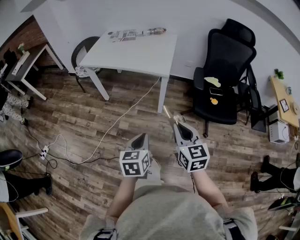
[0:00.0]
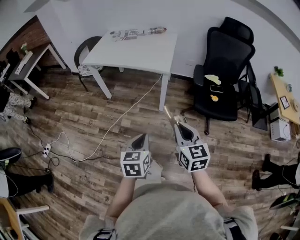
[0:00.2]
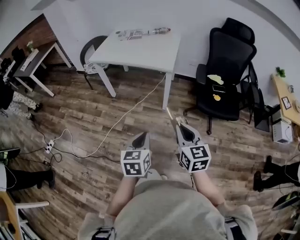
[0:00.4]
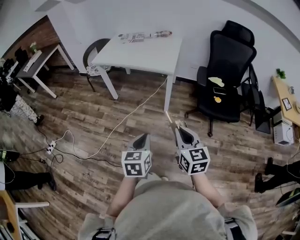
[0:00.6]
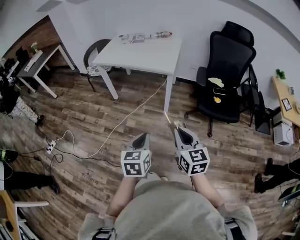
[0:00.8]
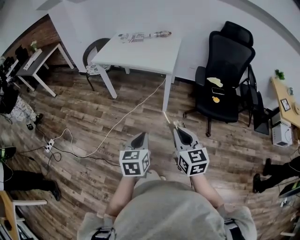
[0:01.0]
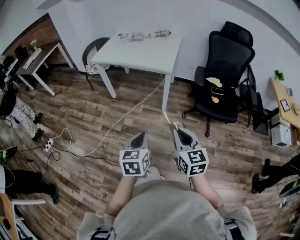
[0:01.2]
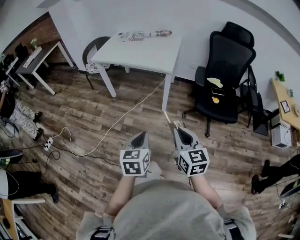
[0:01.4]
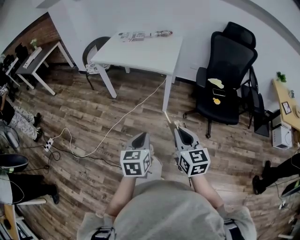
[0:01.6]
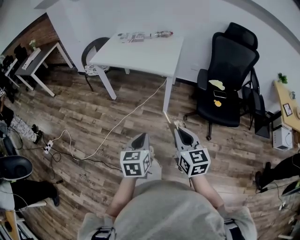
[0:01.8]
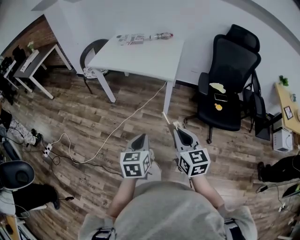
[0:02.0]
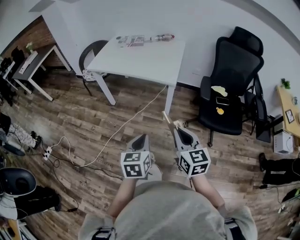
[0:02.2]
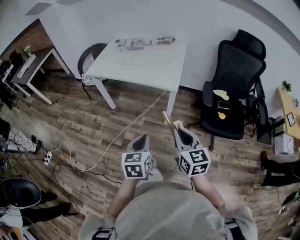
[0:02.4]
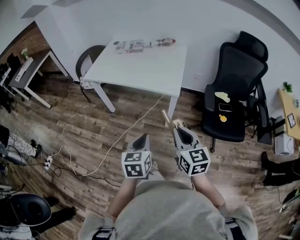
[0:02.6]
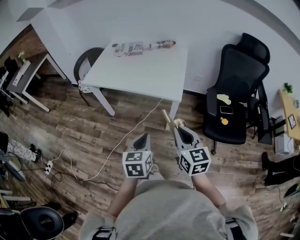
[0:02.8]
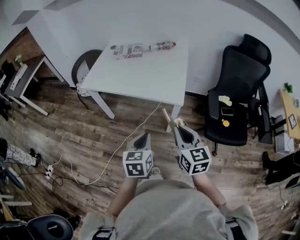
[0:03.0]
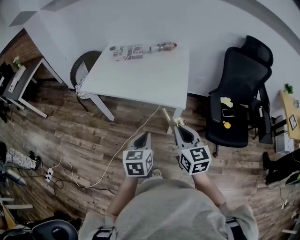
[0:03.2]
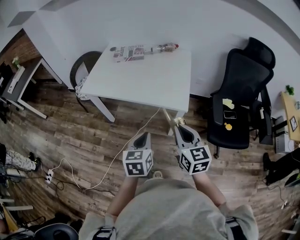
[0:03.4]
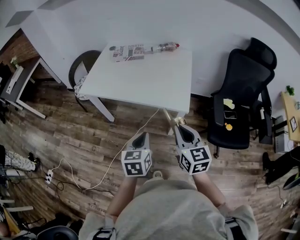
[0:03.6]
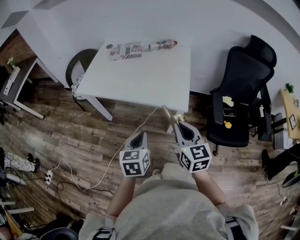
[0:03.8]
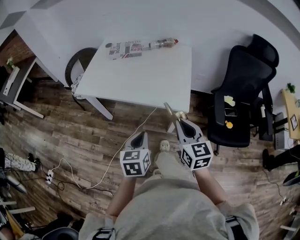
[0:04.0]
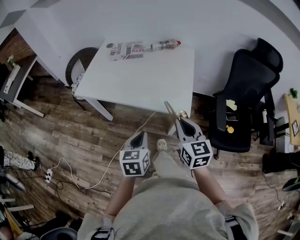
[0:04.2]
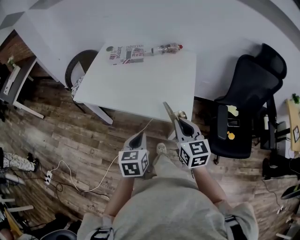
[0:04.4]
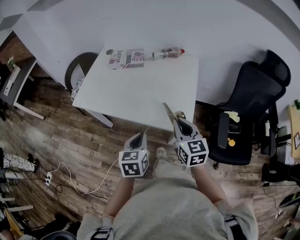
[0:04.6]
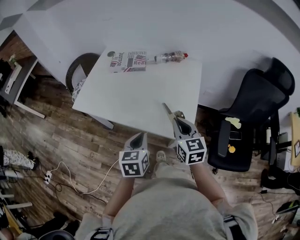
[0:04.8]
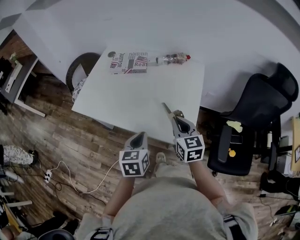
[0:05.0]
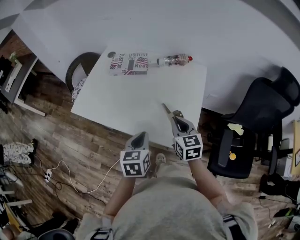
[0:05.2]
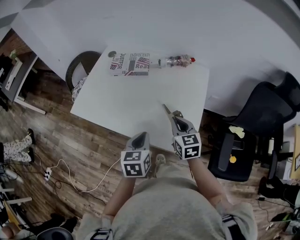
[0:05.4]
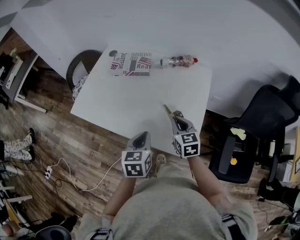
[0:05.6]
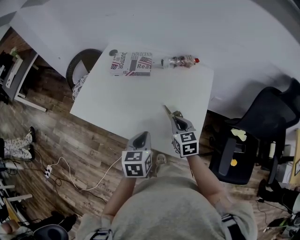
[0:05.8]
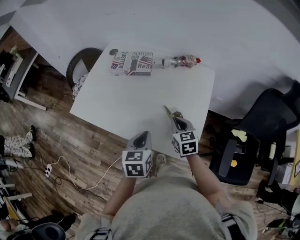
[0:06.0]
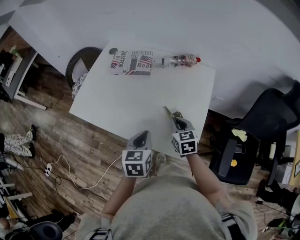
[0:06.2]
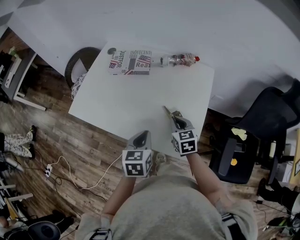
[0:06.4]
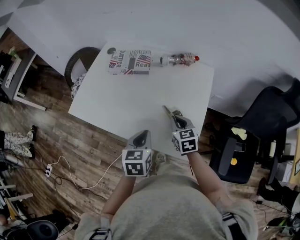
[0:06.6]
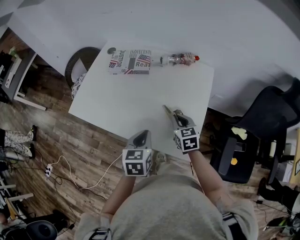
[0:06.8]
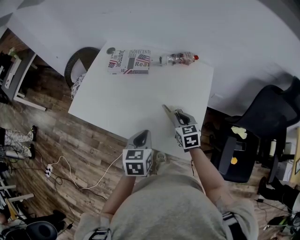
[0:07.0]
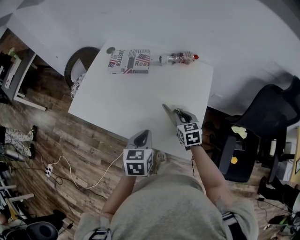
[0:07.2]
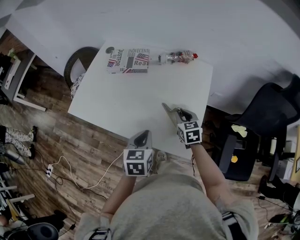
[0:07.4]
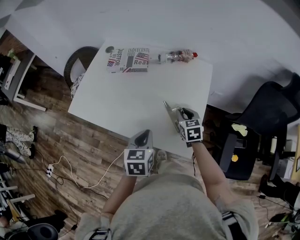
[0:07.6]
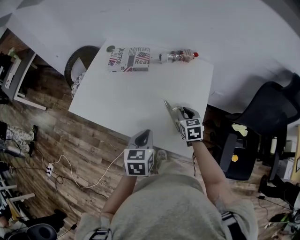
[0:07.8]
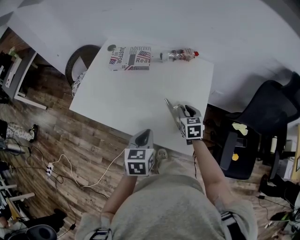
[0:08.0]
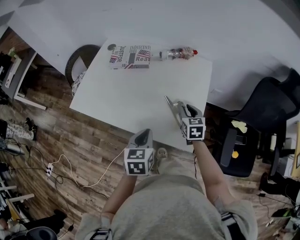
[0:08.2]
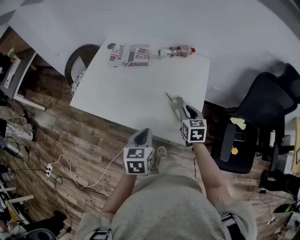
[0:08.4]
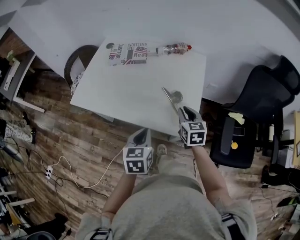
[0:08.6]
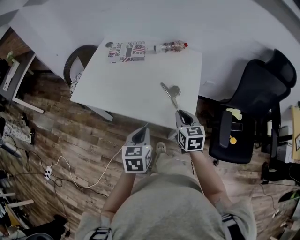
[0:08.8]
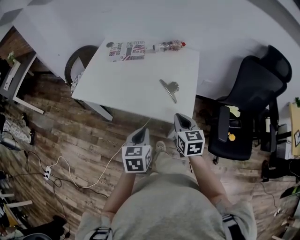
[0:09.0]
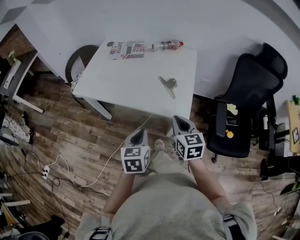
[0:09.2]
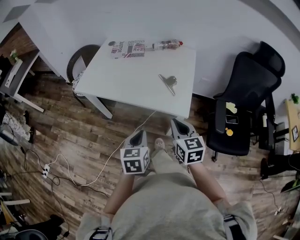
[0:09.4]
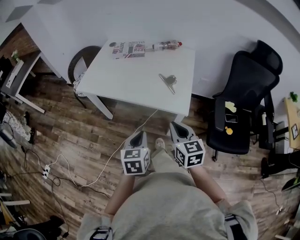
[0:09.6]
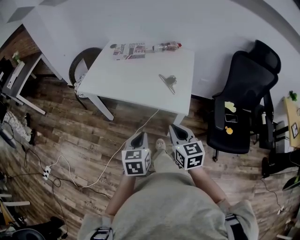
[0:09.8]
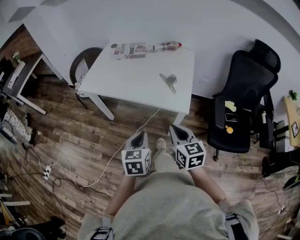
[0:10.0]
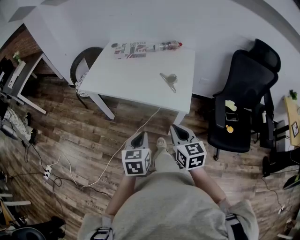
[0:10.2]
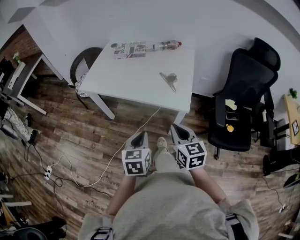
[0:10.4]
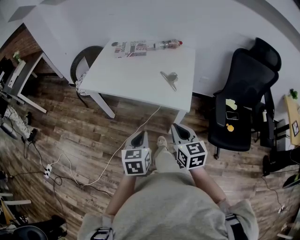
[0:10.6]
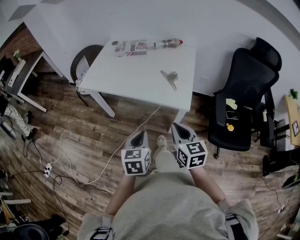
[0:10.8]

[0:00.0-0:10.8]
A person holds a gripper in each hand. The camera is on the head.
0:00.0 to 0:01.6: The grippers both shift backward by about 10 cm.
0:01.6 to 0:03.0: Both grippers travel together forward, about 30 cm.
0:03.0 to 0:04.6: Both grippers travel together forward, about 25 cm.
0:04.6 to 0:06.2: The right gripper is displaced forward and downward by about 25 cm. Meanwhile the left gripper shifts about 15 cm forward.
0:06.2 to 0:07.8: The right gripper shifts about 5 cm to the right.
0:07.8 to 0:09.2: The right gripper heads backward and upward, covering roughly 30 cm. The left gripper shifts about 20 cm backward.
0:09.2 to 0:10.8: Both grippers travel together backward, roughly 10 cm.

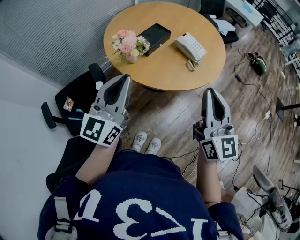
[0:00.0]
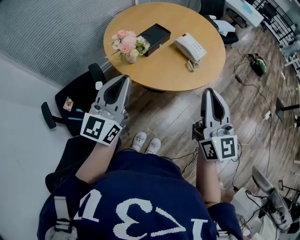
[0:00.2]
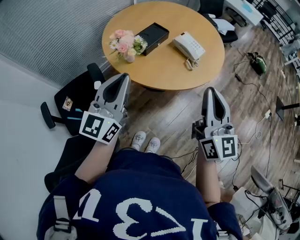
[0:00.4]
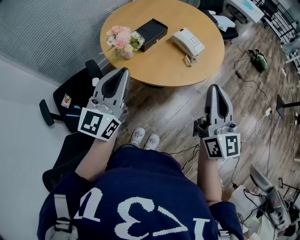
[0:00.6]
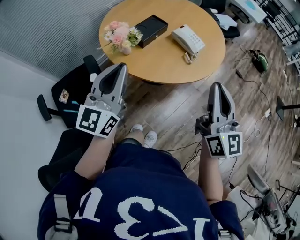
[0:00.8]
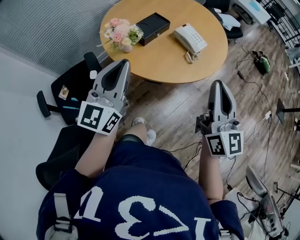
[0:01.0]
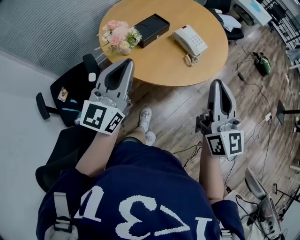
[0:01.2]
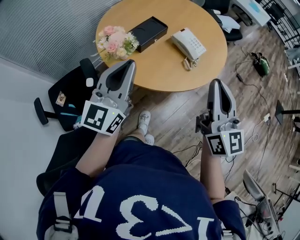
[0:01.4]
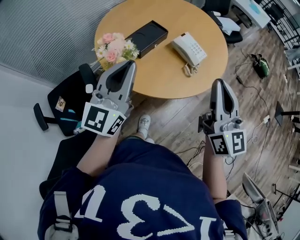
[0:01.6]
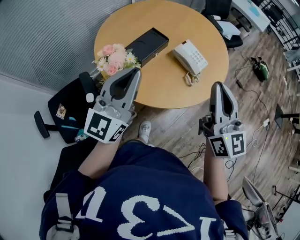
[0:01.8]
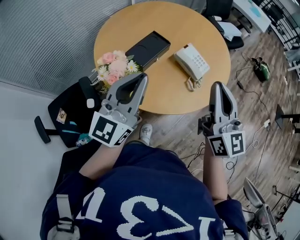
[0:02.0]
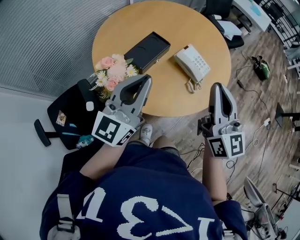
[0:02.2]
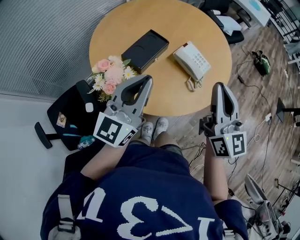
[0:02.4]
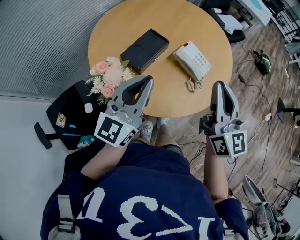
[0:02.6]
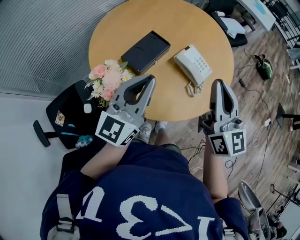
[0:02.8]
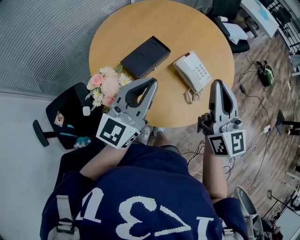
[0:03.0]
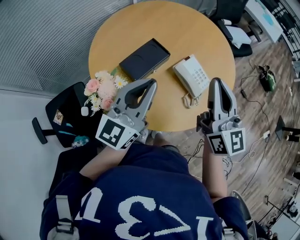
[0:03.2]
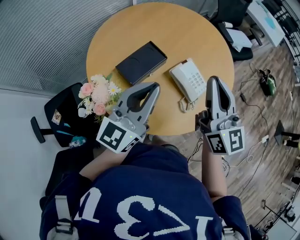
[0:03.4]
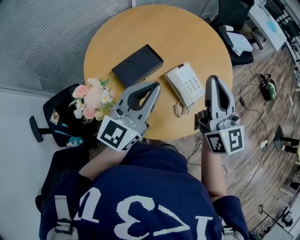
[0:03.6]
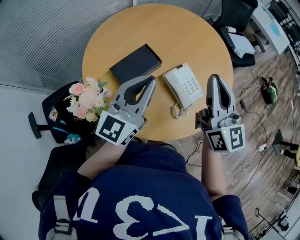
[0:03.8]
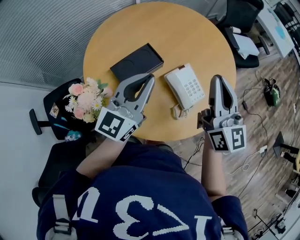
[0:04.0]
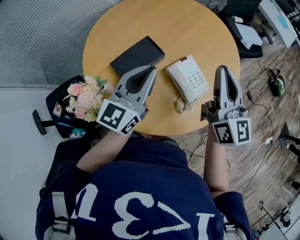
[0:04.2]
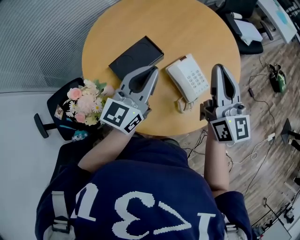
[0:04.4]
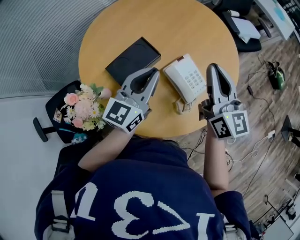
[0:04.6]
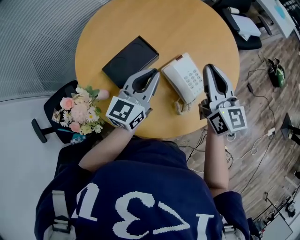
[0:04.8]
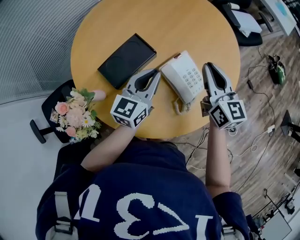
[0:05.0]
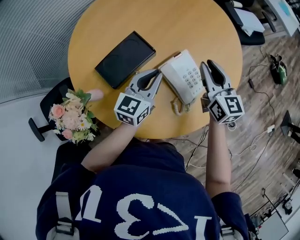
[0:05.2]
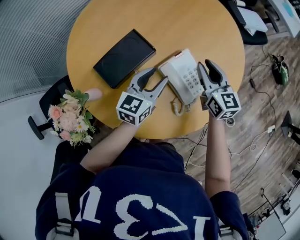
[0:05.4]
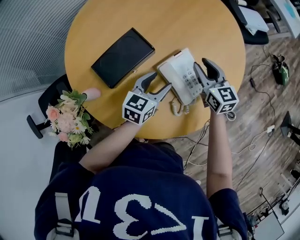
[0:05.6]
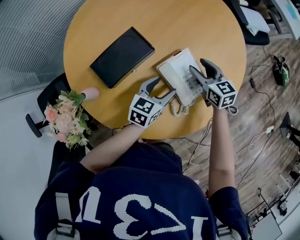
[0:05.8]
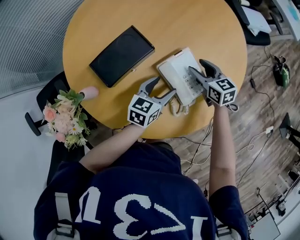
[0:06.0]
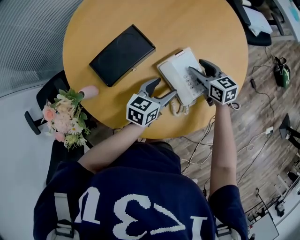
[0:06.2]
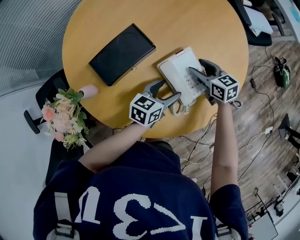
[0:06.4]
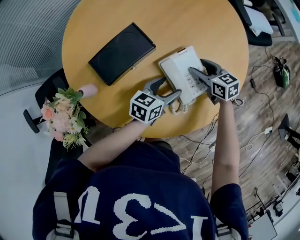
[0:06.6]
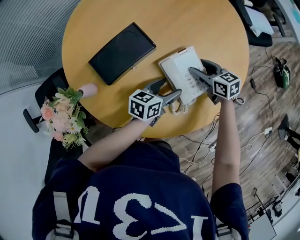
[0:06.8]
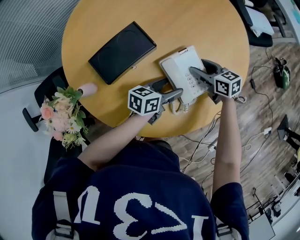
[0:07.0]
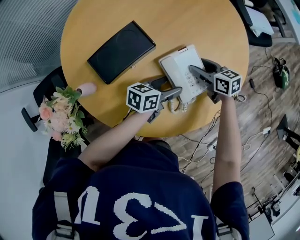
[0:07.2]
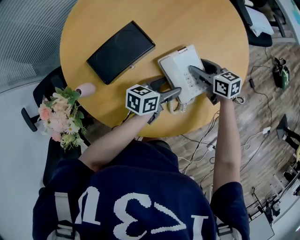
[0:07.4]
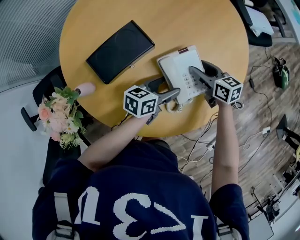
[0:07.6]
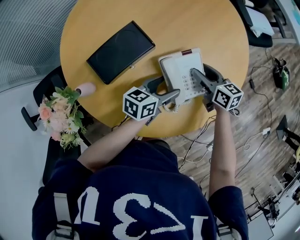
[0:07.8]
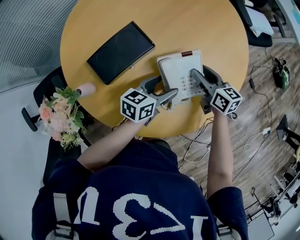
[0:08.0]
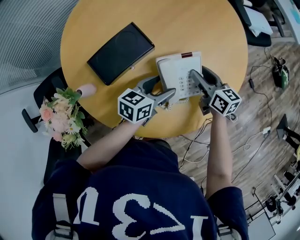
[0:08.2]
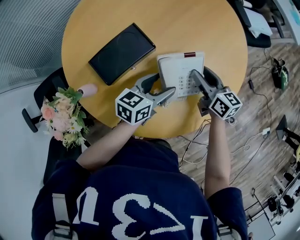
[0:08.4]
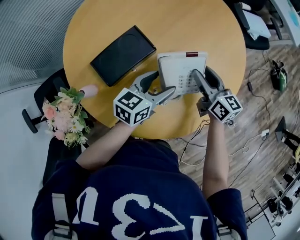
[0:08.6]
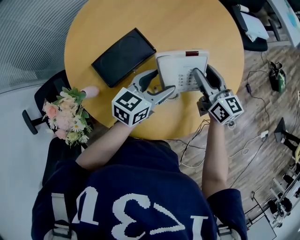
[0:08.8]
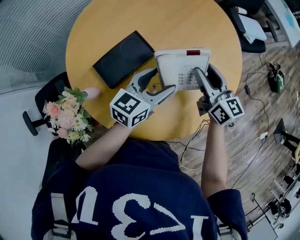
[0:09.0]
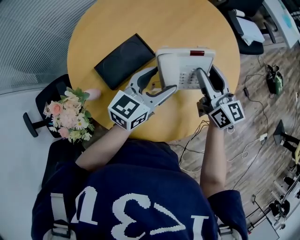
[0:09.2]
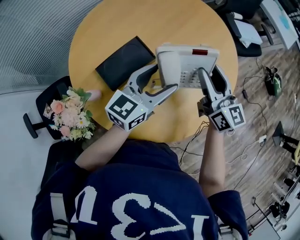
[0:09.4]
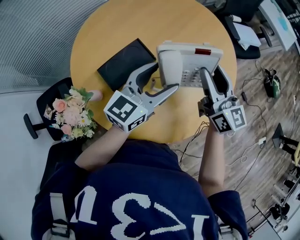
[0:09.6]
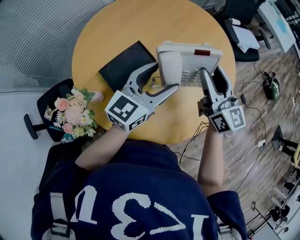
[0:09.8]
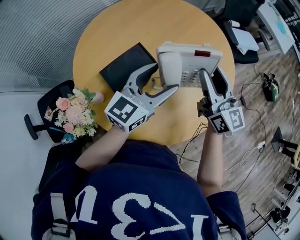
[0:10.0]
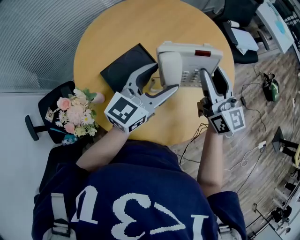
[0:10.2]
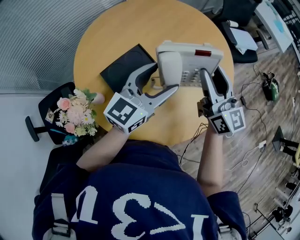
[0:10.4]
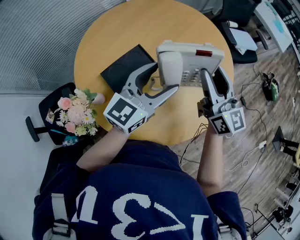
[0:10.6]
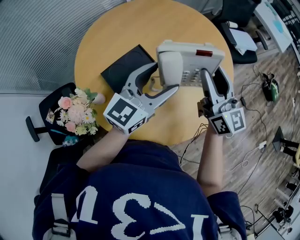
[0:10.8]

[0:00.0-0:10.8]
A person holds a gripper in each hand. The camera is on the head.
0:00.0 to 0:01.6: The right gripper shifts some 10 cm forward. The left gripper goes about 15 cm forward and to the right.
0:01.6 to 0:03.0: The two grippers go some 15 cm forward.
0:03.0 to 0:04.6: The right gripper travels forward and downward by roughly 15 cm. Meanwhile the left gripper travels forward, downward and to the right by approximately 20 cm.
0:04.6 to 0:06.2: Both grippers travel together downward, approximately 25 cm. The right gripper angles its fingers downward, by some 40 degrees, and opens, while the left gripper changes its angle by approximately 30 degrees, and opens.
0:06.2 to 0:07.8: There are only small adjustments of the grippers.
0:07.8 to 0:09.2: The two grippers go approximately 15 cm upward. The right gripper swivels roughly 30 degrees; the left gripper changes its angle by some 30 degrees.
0:09.2 to 0:10.8: Both grippers move upward, some 10 cm.

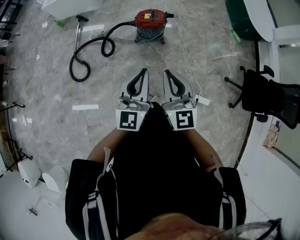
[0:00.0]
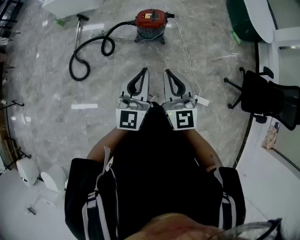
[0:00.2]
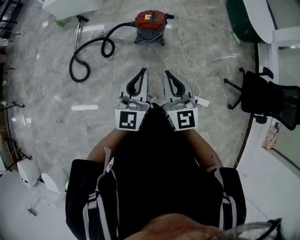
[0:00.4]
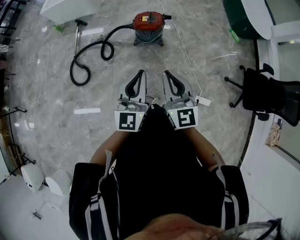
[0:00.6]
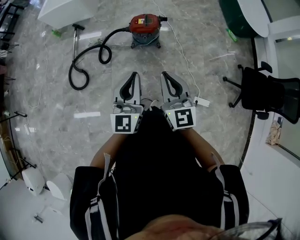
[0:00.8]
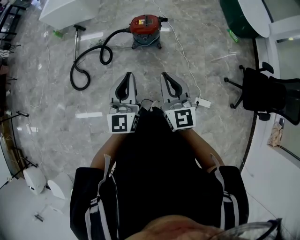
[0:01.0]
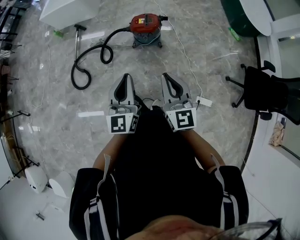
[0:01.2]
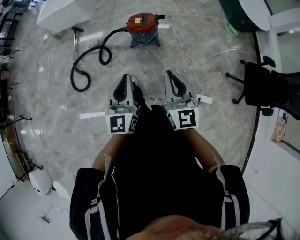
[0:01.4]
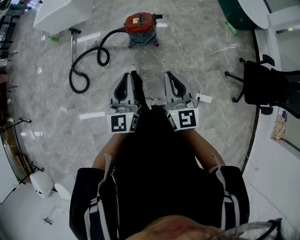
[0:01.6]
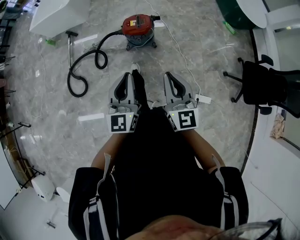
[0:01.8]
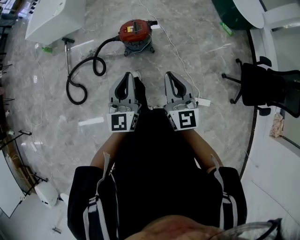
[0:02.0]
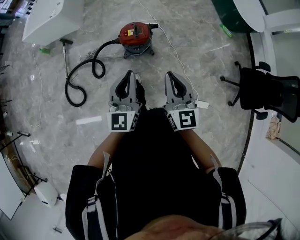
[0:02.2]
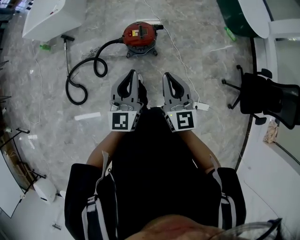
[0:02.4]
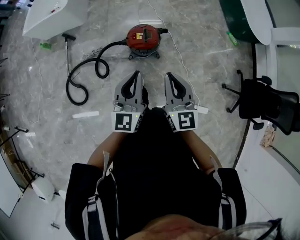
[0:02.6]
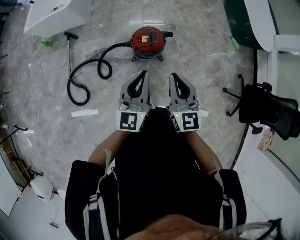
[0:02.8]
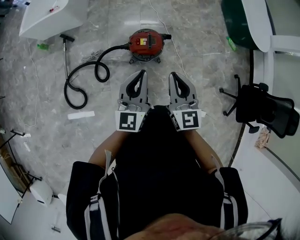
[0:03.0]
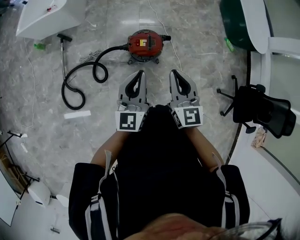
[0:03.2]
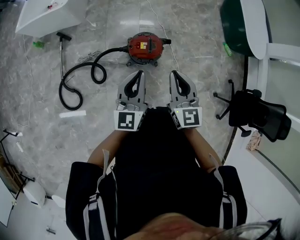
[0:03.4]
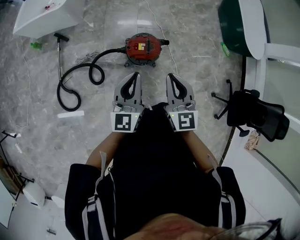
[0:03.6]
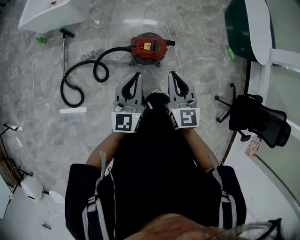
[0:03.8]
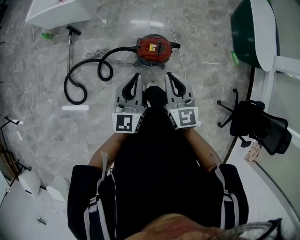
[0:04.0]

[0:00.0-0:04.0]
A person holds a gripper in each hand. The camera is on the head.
0:00.0 to 0:01.4: The right gripper travels to the right by about 5 cm.
0:01.4 to 0:02.6: The two grippers go roughly 25 cm forward.
0:02.6 to 0:04.0: The grippers both shift forward and to the left by some 15 cm.
